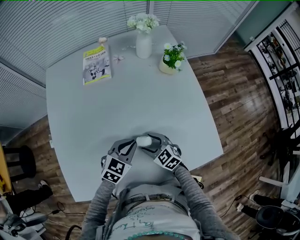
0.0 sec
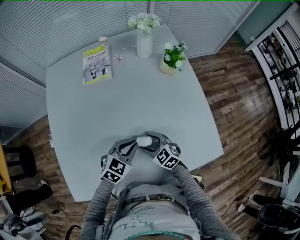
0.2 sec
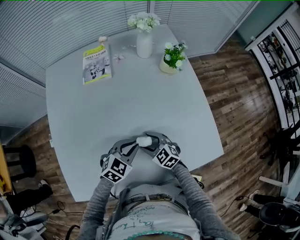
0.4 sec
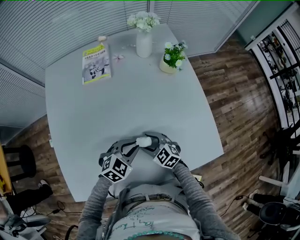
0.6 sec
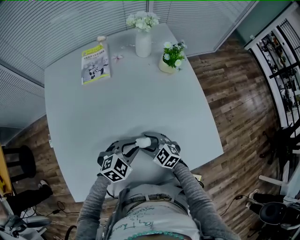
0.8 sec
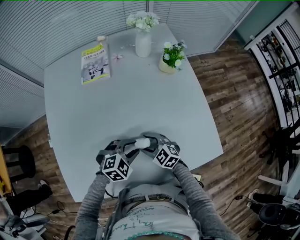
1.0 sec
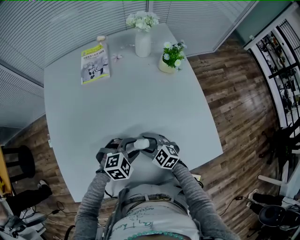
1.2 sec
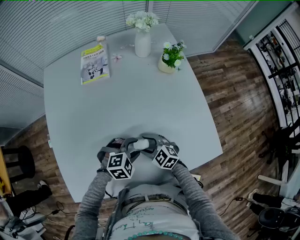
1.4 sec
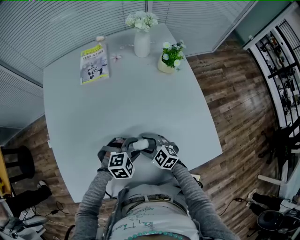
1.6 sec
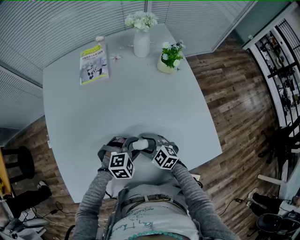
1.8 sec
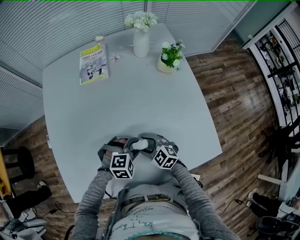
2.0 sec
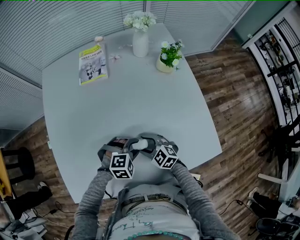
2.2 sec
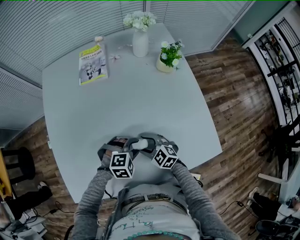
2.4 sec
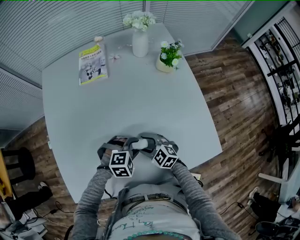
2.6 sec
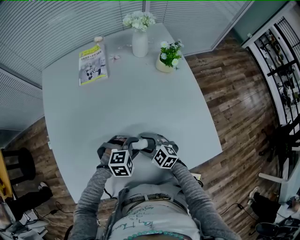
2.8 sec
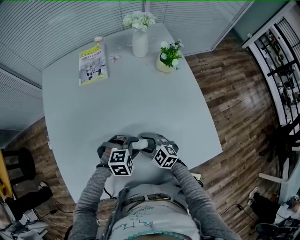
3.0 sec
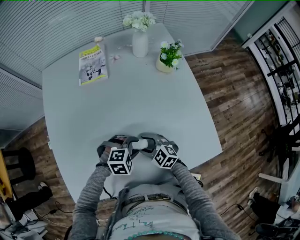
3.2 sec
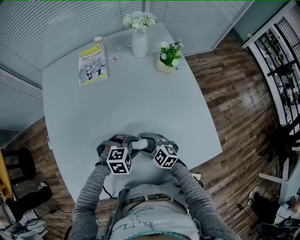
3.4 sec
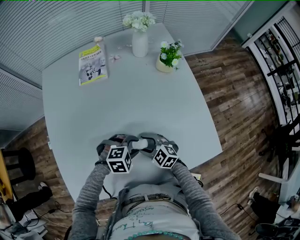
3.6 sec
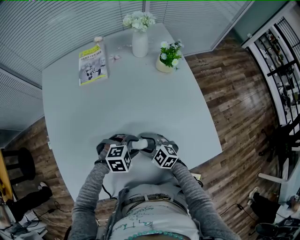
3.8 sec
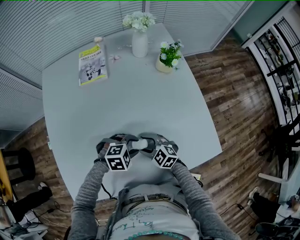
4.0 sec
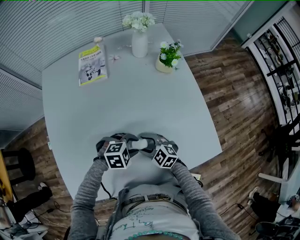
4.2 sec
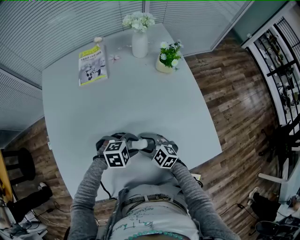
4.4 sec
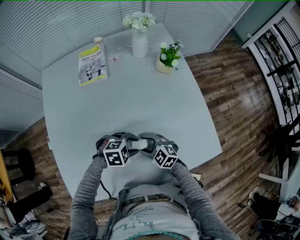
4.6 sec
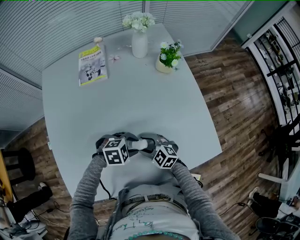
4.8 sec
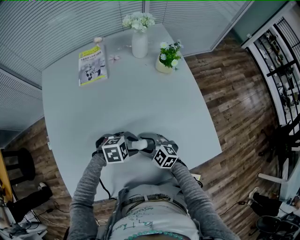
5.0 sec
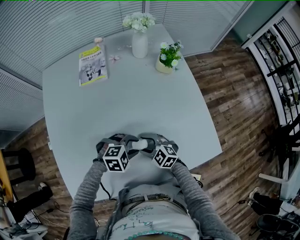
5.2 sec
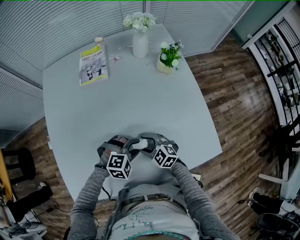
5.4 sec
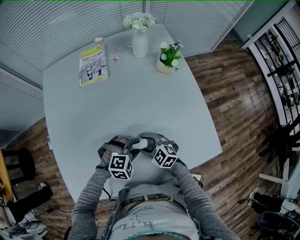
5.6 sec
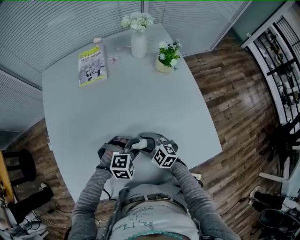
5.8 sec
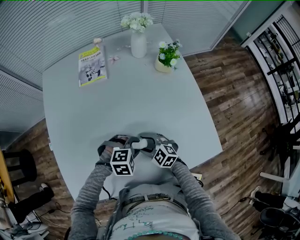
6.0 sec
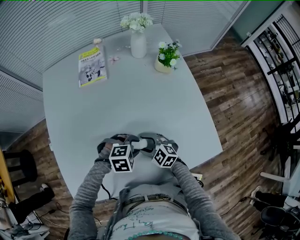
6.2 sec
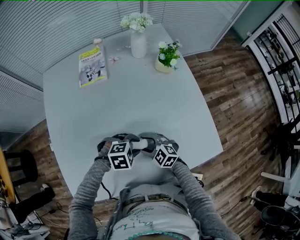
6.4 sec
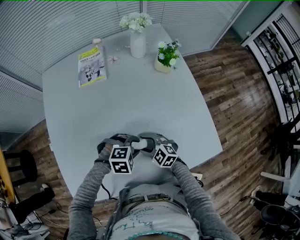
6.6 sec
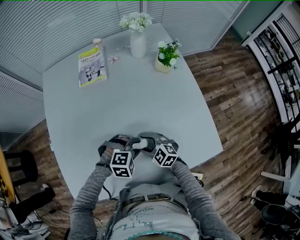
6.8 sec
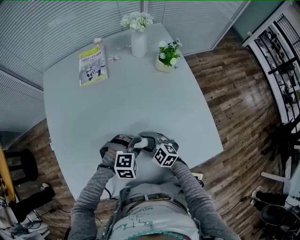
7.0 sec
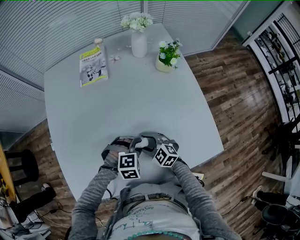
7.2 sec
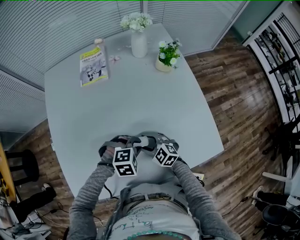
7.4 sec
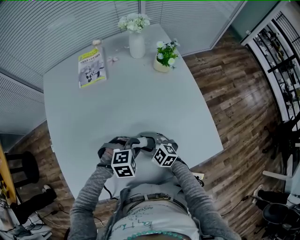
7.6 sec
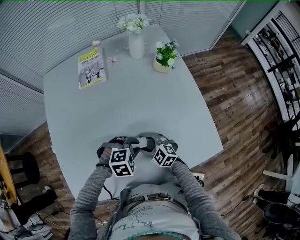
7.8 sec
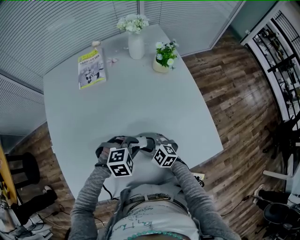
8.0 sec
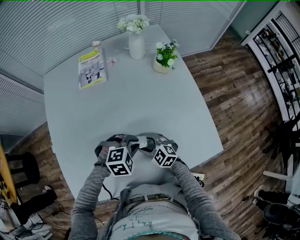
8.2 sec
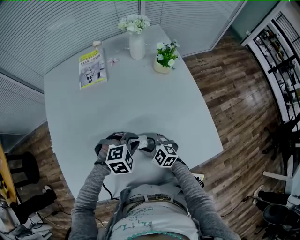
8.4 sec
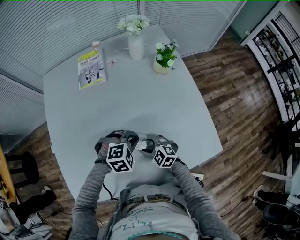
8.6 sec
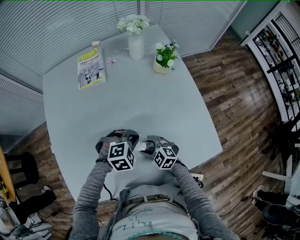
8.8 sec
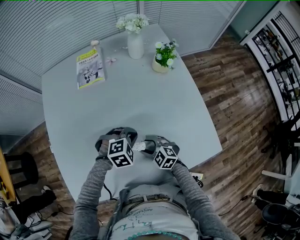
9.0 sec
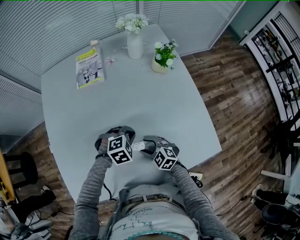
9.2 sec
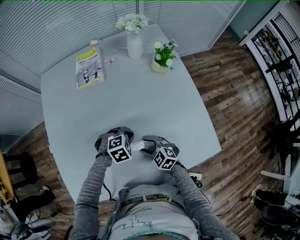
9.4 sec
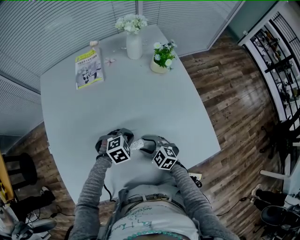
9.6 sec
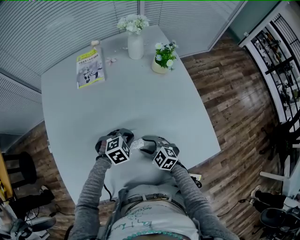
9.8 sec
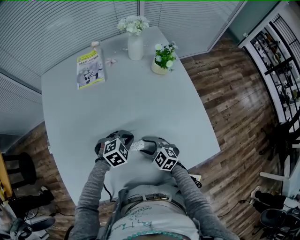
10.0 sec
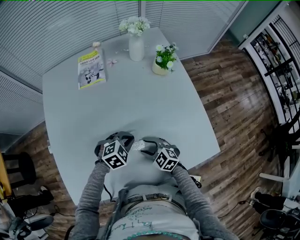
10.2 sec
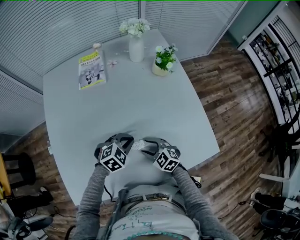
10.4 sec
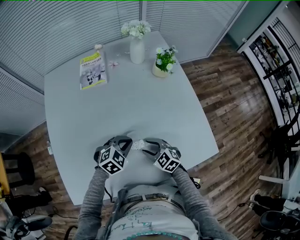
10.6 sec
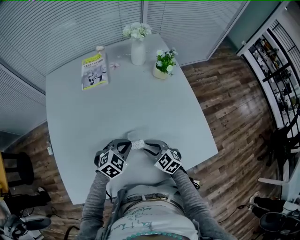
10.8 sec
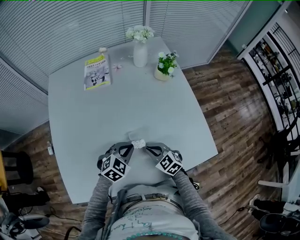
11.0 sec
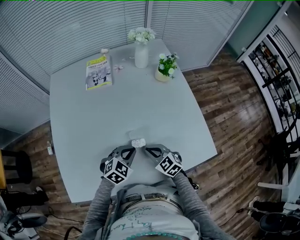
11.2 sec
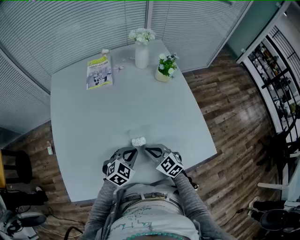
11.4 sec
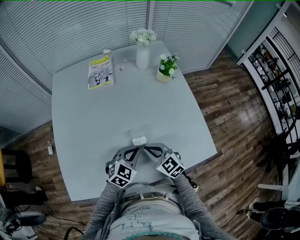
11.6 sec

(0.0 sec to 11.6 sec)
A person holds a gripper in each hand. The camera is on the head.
0.0 sec - 1.4 sec: The left gripper shifts by approximately 5 cm, turns by approximately 40 degrees, and opens.
1.4 sec - 4.4 sec: The grippers move only a little.
5.8 sec - 7.2 sec: The grippers stay close to where they were, moving slightly.
7.2 sec - 8.8 sec: The left gripper shifts by approximately 5 cm, and closes its fingers.
8.8 sec - 10.2 sec: The grippers make only small movements.
10.2 sec - 11.6 sec: The left gripper moves backward and upward, some 10 cm, and turns by approximately 30 degrees. Meanwhile the right gripper travels upward by some 10 cm, and closes its fingers.

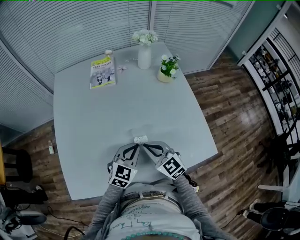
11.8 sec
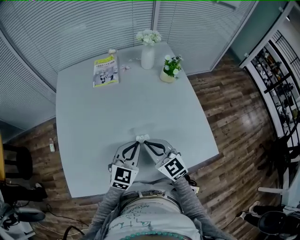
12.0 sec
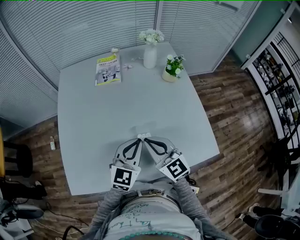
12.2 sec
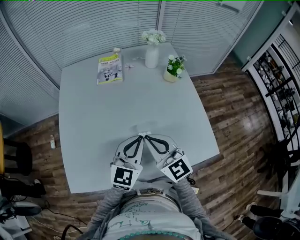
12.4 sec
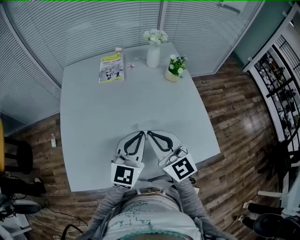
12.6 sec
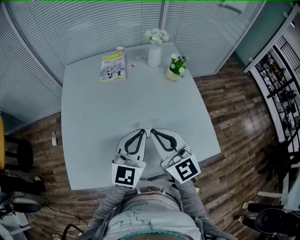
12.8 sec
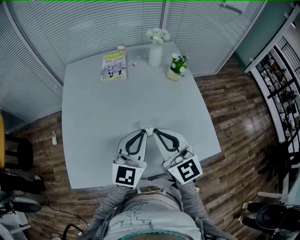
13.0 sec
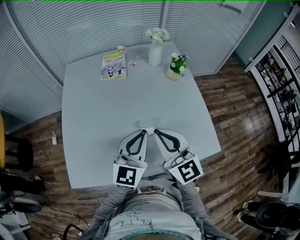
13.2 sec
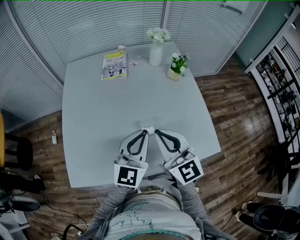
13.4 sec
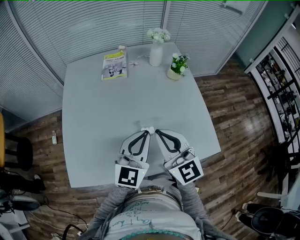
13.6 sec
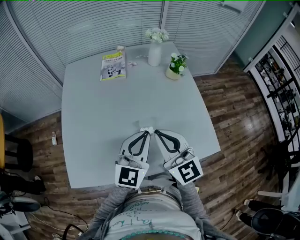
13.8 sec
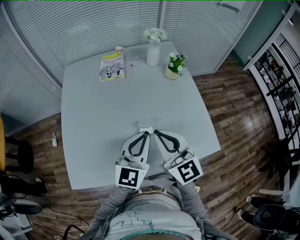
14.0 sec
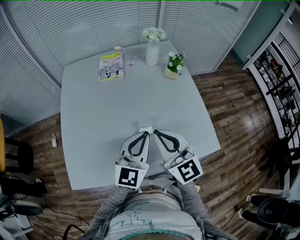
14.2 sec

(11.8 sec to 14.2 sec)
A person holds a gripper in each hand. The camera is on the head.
11.8 sec - 13.0 sec: Both grippers move upward, about 15 cm. The left gripper changes its angle by some 30 degrees, while the right gripper swivels roughly 20 degrees.
13.0 sec - 14.2 sec: The grippers move only a little.

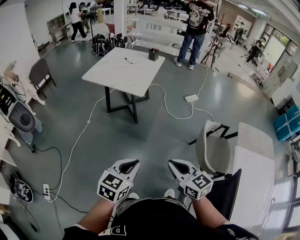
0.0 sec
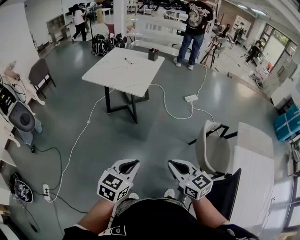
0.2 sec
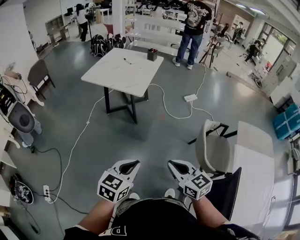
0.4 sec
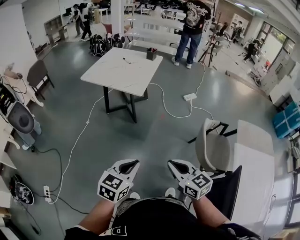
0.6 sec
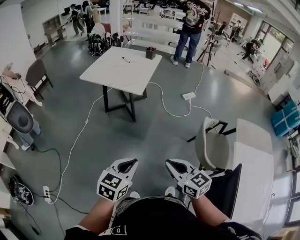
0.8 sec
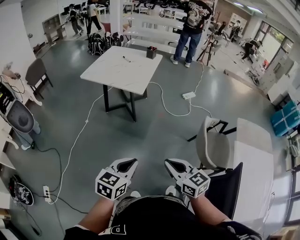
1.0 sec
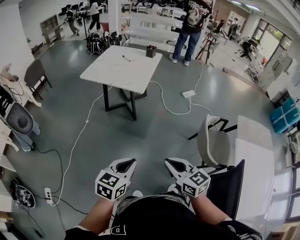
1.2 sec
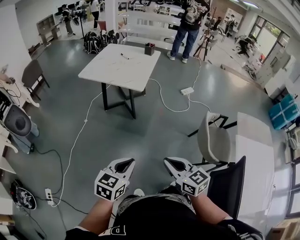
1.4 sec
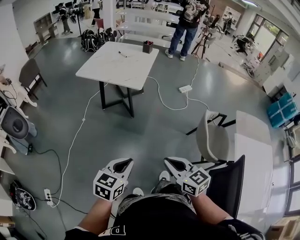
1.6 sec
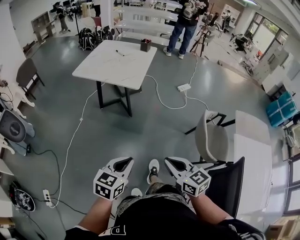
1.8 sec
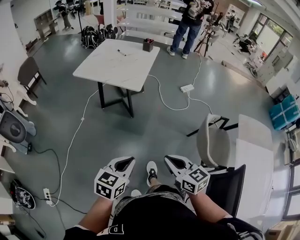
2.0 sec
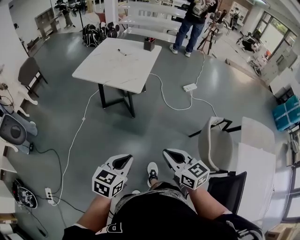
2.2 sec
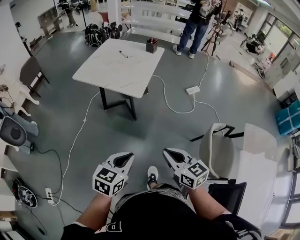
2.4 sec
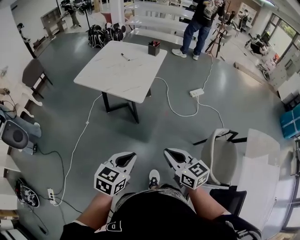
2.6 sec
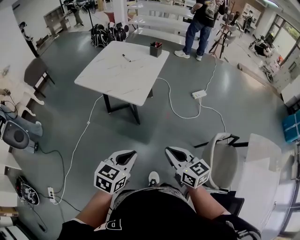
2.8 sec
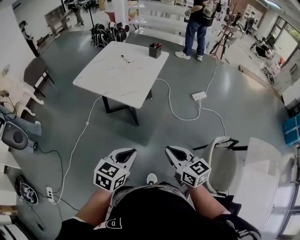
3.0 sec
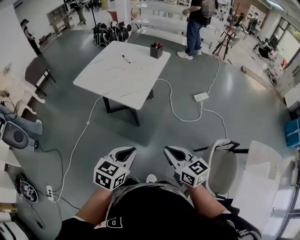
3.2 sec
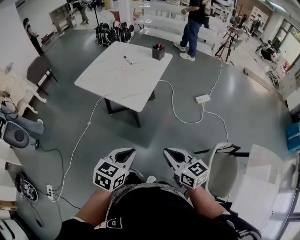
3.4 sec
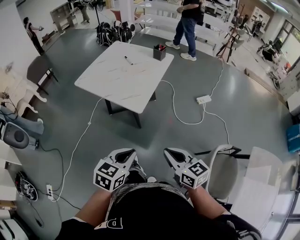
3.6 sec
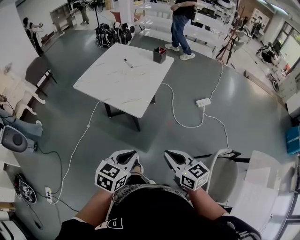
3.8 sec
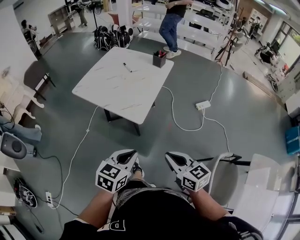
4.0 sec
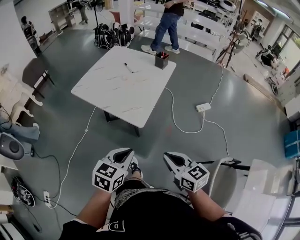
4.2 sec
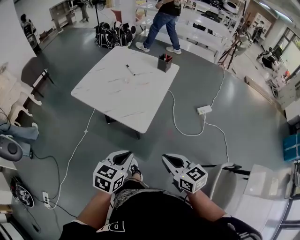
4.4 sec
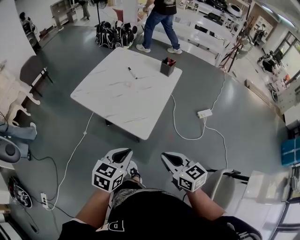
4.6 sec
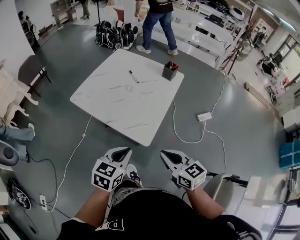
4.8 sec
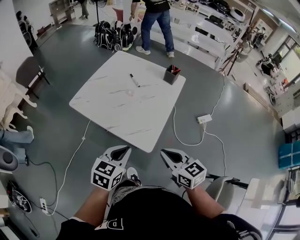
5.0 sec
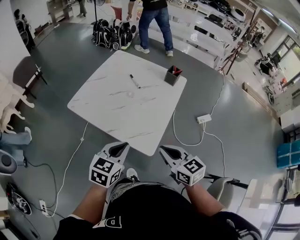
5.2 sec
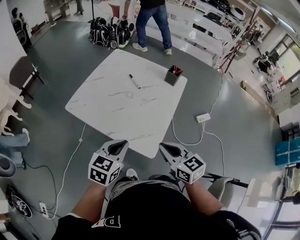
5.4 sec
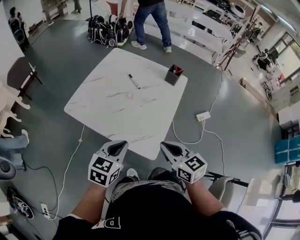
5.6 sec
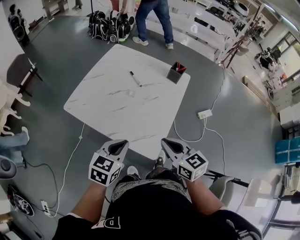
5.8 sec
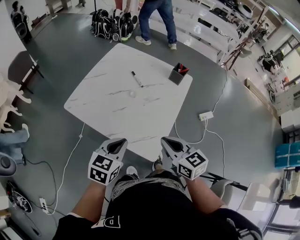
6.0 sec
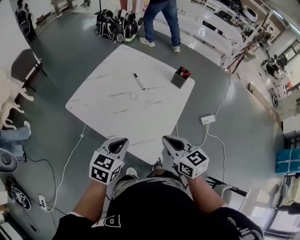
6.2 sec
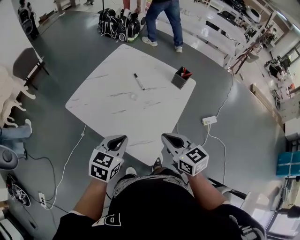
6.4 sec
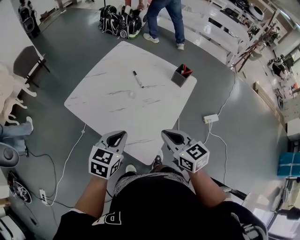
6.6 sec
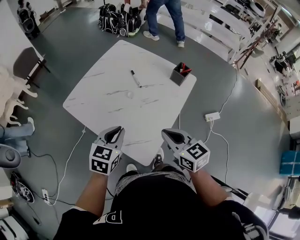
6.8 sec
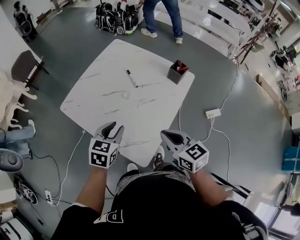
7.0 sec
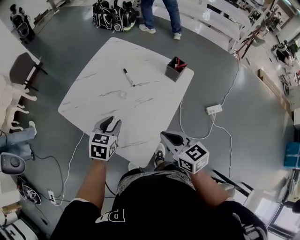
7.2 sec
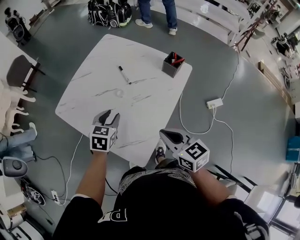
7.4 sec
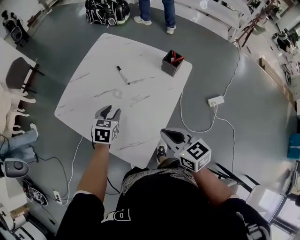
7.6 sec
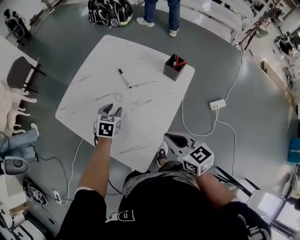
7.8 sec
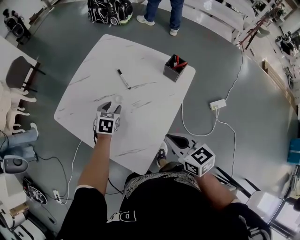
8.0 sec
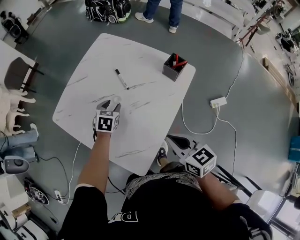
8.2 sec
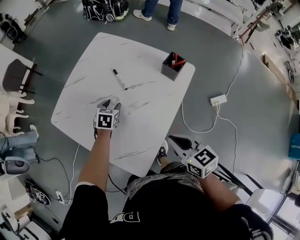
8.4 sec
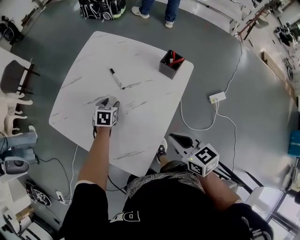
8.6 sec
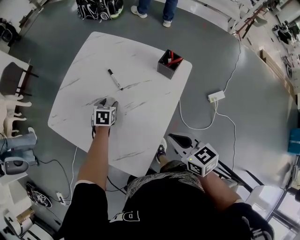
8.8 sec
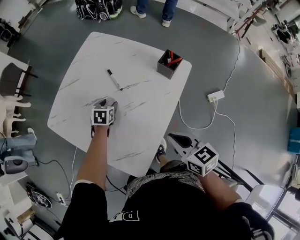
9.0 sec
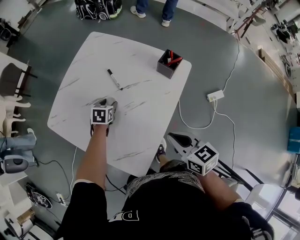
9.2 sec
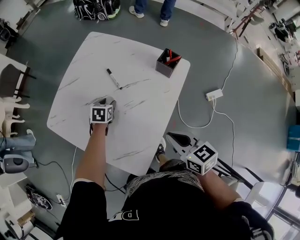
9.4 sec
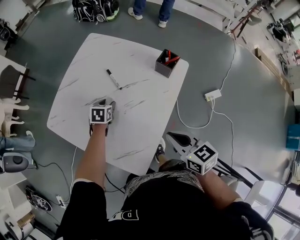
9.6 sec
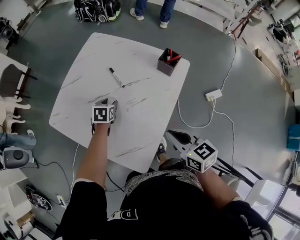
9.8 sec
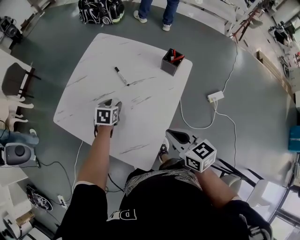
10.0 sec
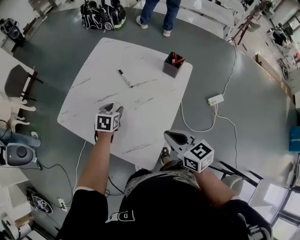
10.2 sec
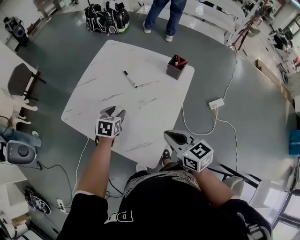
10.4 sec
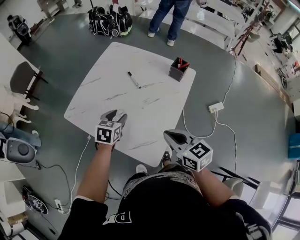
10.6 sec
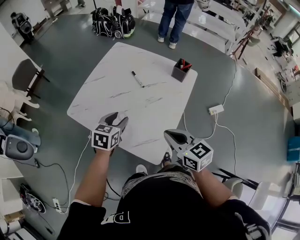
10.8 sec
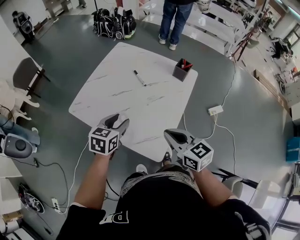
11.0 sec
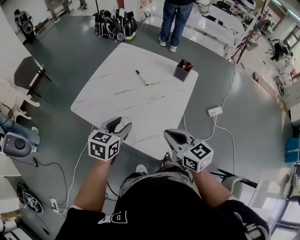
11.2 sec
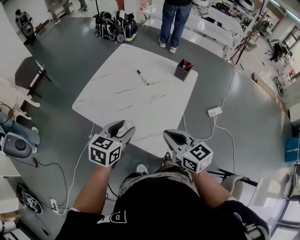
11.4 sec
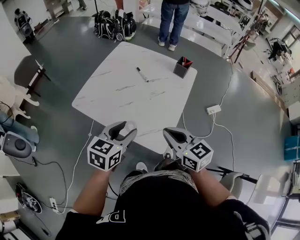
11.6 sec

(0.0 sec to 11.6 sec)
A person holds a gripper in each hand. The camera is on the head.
0.0 sec - 1.4 sec: The two grippers go about 5 cm to the left.
1.4 sec - 2.8 sec: Both grippers travel together forward, roughly 25 cm.
2.8 sec - 4.4 sec: The two grippers go approximately 20 cm forward.
4.4 sec - 5.8 sec: Both grippers travel together forward, roughly 25 cm.
5.8 sec - 7.2 sec: The left gripper goes roughly 15 cm forward, and opens its fingers, while the right gripper shifts about 15 cm to the right and forward.
7.2 sec - 8.8 sec: The right gripper shifts approximately 10 cm to the right and downward. Meanwhile the left gripper heads downward and forward, covering approximately 25 cm, and opens its fingers.
8.8 sec - 10.2 sec: The right gripper heads to the left, covering approximately 5 cm. The left gripper moves upward and backward, roughly 10 cm.
10.2 sec - 11.6 sec: The left gripper goes approximately 30 cm backward and upward, and swivels approximately 30 degrees. Meanwhile the right gripper moves to the left, backward and upward, about 15 cm.
